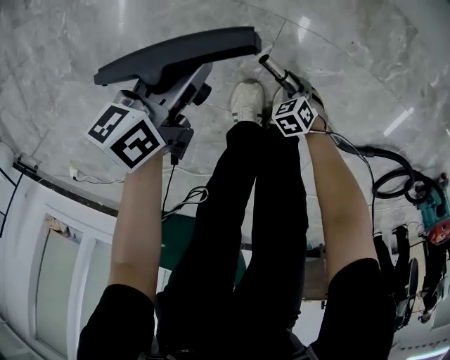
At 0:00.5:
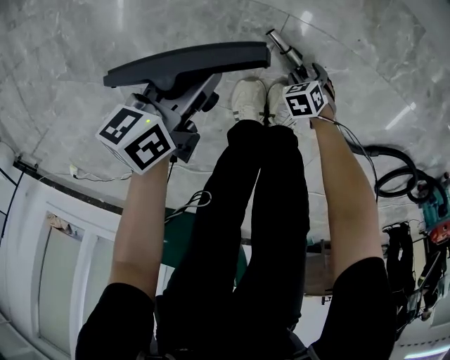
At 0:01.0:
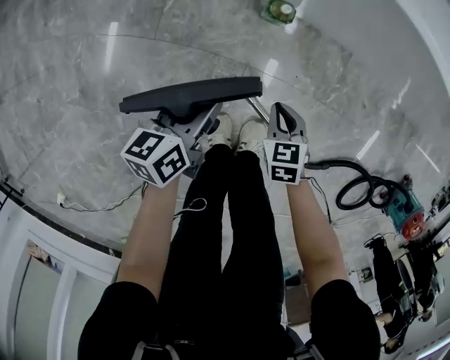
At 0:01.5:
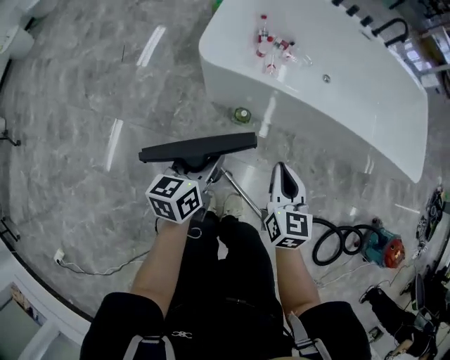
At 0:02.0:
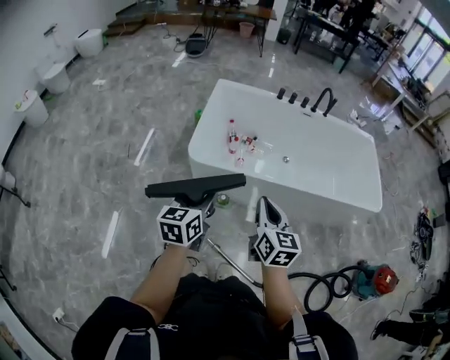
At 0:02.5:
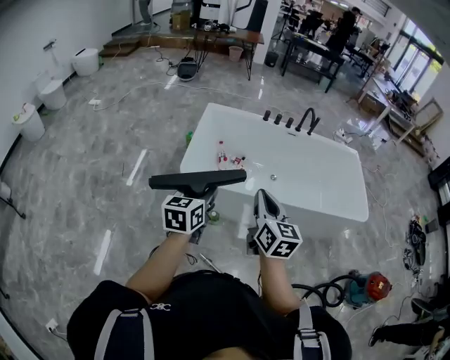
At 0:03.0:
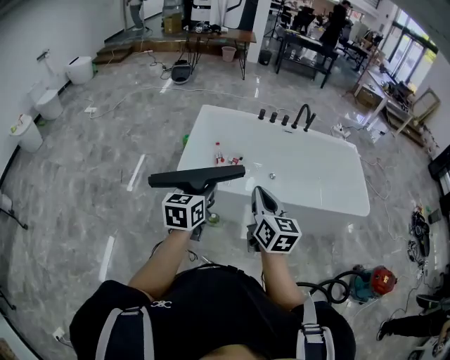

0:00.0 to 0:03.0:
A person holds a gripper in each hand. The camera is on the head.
0:00.0 to 0:01.5: The left gripper heads upward, covering approximately 50 cm, and rotates approximately 20 degrees. Meanwhile the right gripper moves upward, about 70 cm, tips its fingers upward by some 50 degrees, and opens, then closes again.
0:01.5 to 0:03.0: The two grippers go about 35 cm upward. The left gripper rotates some 20 degrees; the right gripper swivels about 20 degrees.

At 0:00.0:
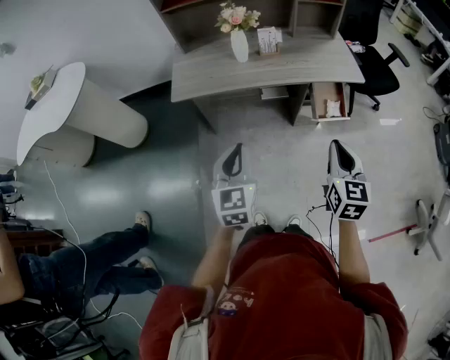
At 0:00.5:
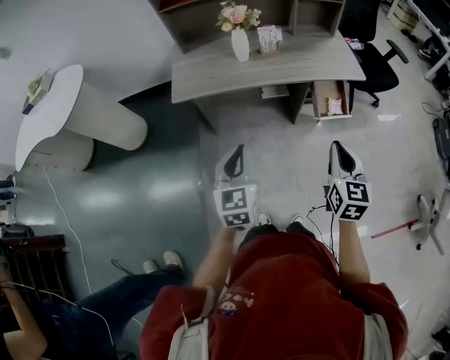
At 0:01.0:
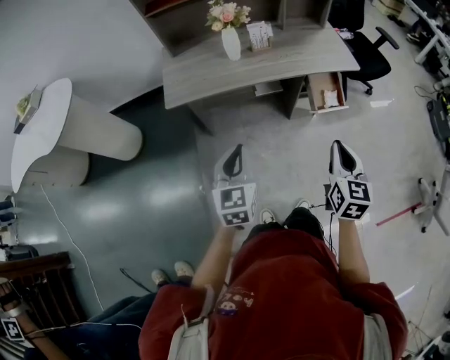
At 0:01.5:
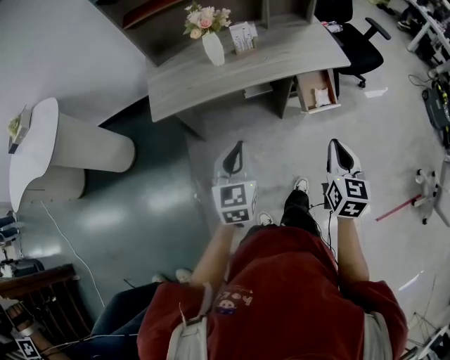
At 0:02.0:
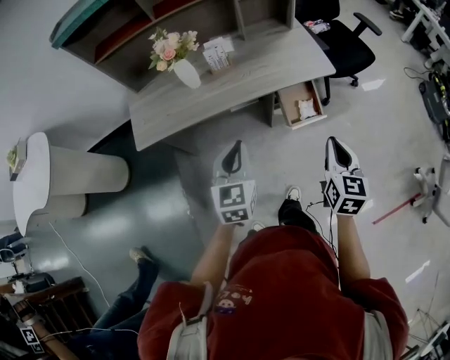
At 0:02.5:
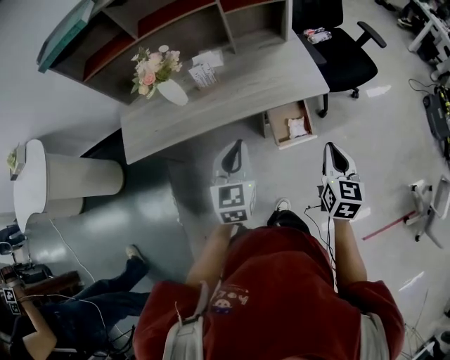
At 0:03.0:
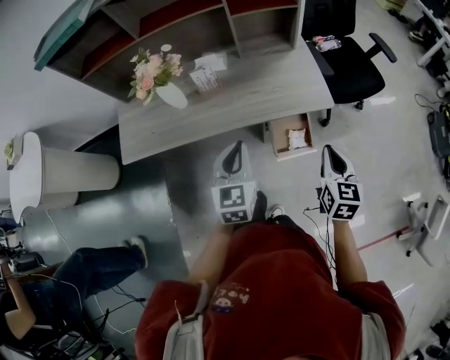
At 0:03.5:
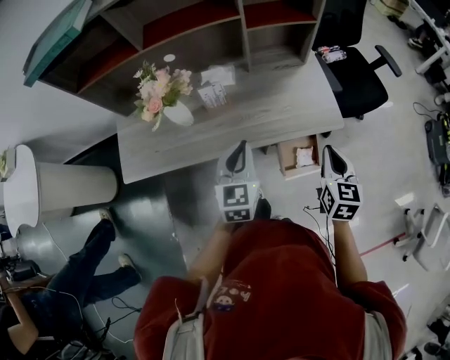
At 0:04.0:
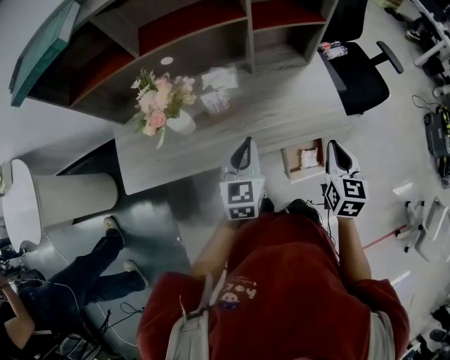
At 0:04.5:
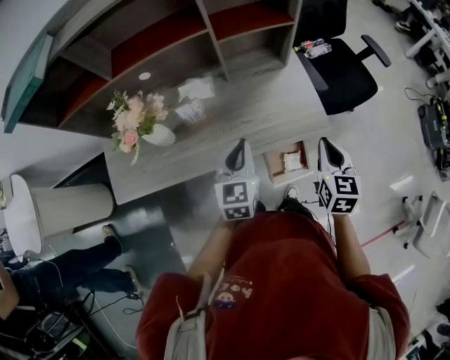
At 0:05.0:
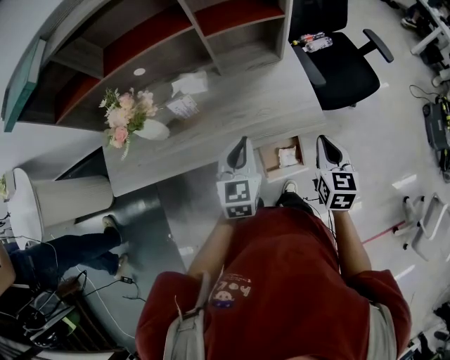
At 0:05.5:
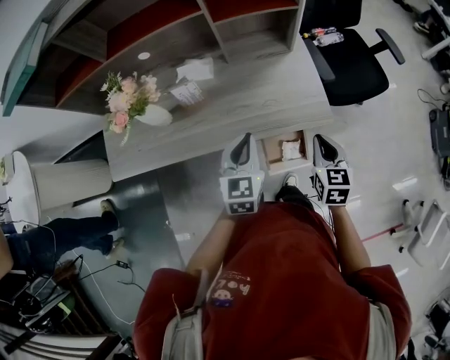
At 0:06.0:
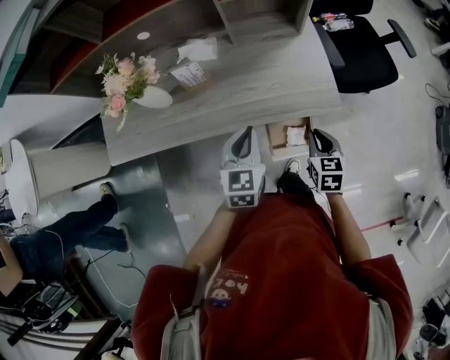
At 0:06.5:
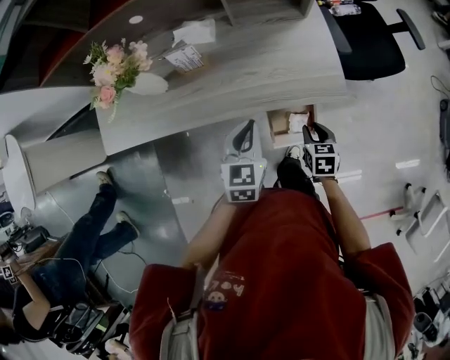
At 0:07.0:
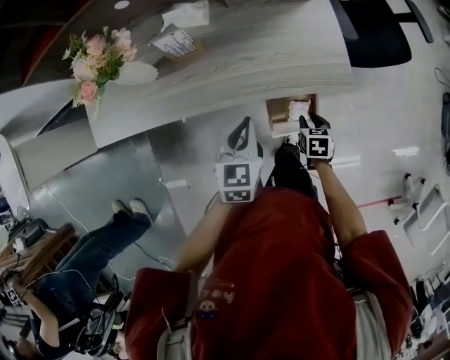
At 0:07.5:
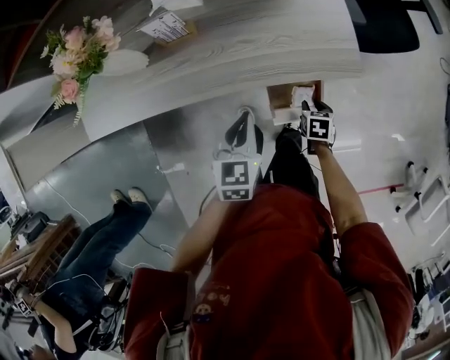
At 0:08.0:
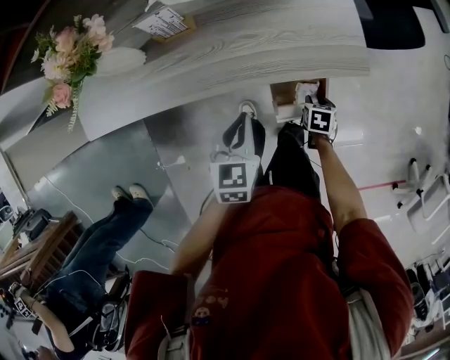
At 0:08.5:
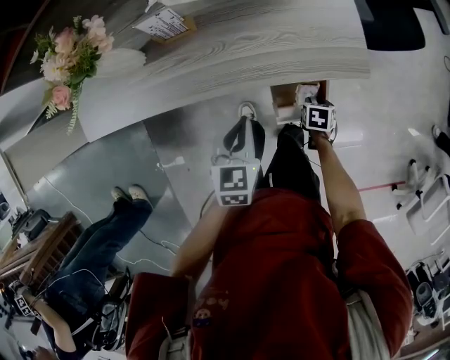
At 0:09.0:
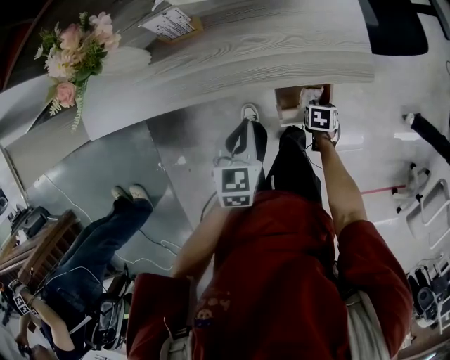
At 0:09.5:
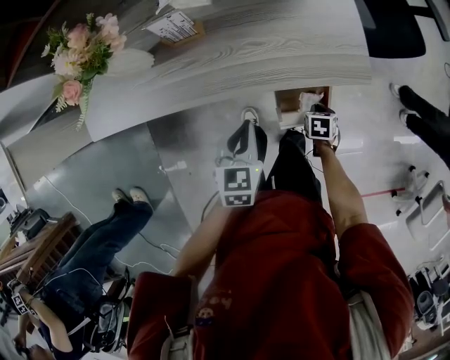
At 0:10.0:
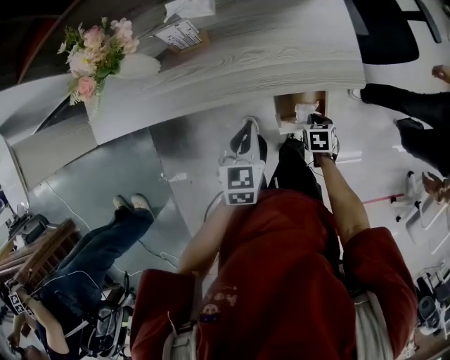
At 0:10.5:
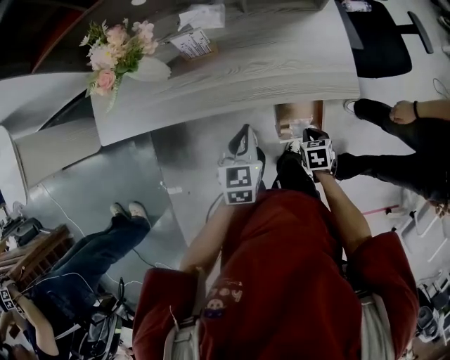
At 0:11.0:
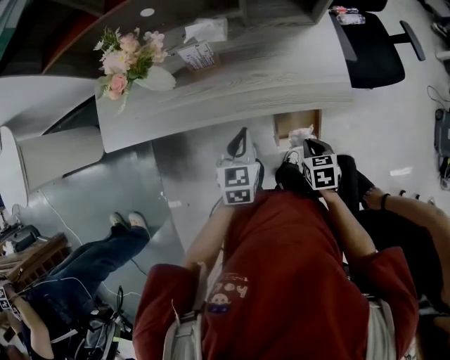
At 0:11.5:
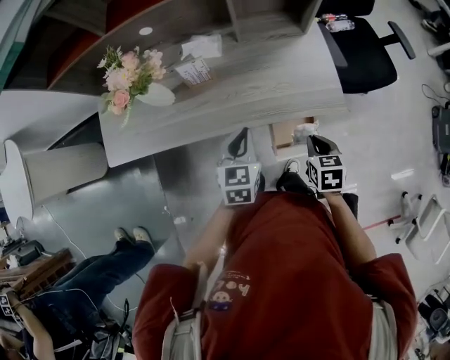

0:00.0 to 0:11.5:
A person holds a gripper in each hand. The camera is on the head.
0:00.0 to 0:02.0: Both grippers travel together forward and to the right, roughly 20 cm.
0:02.0 to 0:04.0: The two grippers go approximately 30 cm forward.
0:04.0 to 0:06.0: The left gripper goes some 10 cm to the right and downward, while the right gripper shifts about 15 cm downward and to the right.
0:06.0 to 0:07.5: The right gripper shifts approximately 25 cm downward, rotates approximately 30 degrees, and opens up, while the left gripper moves downward, some 10 cm.
0:07.5 to 0:09.5: The right gripper closes.
0:09.5 to 0:11.5: The left gripper moves upward, some 10 cm, while the right gripper goes approximately 25 cm upward, and swivels some 20 degrees.

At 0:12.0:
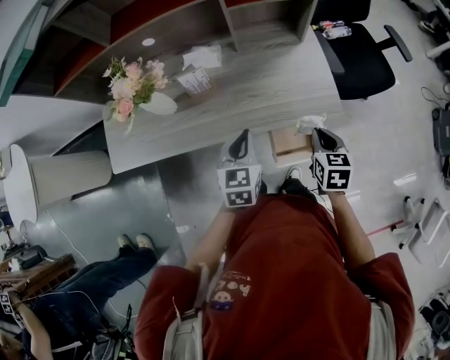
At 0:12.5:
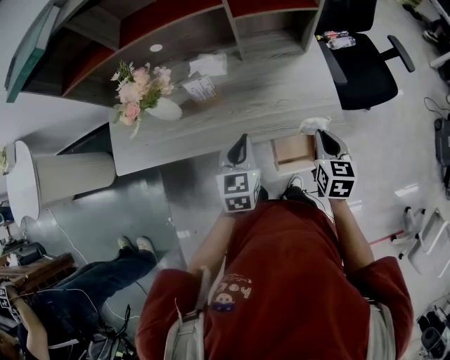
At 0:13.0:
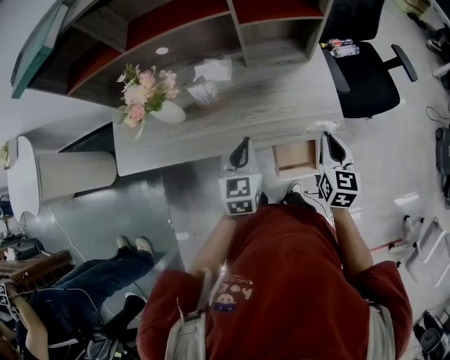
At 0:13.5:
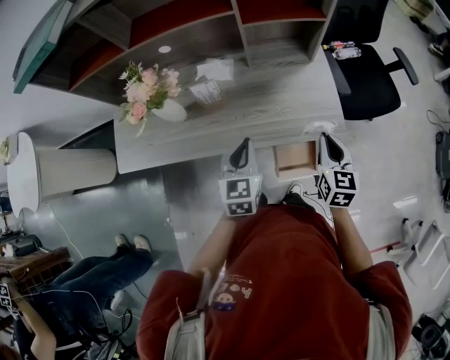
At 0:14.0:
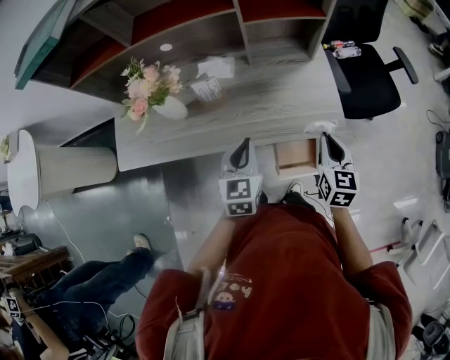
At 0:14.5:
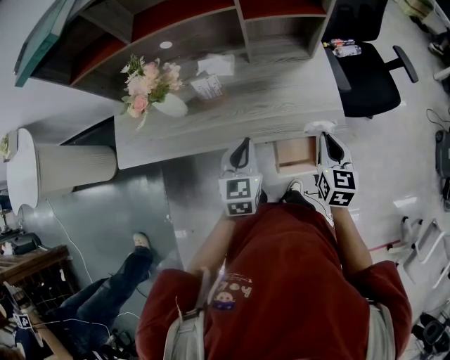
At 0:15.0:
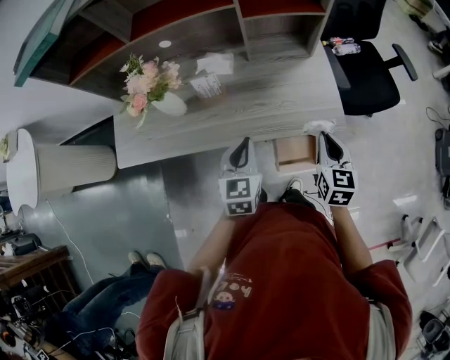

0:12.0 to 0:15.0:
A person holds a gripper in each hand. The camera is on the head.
0:12.0 to 0:13.5: The right gripper travels upward by roughly 5 cm.
0:13.5 to 0:15.0: There are only small adjustments of the grippers.

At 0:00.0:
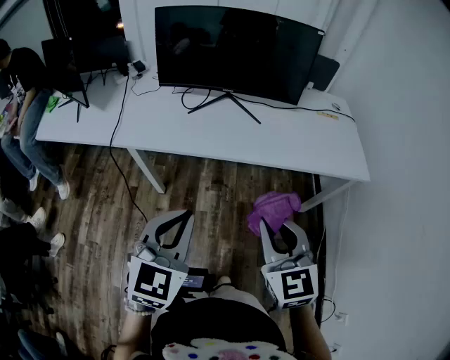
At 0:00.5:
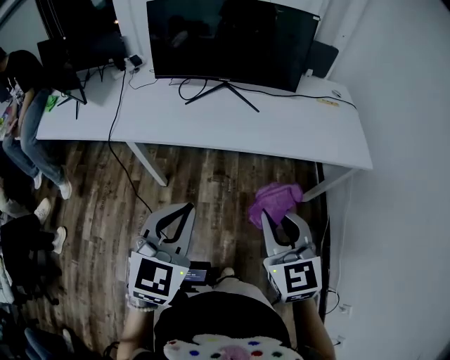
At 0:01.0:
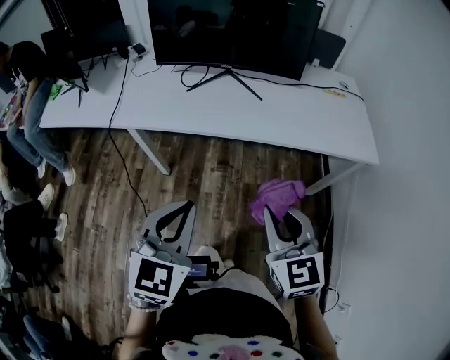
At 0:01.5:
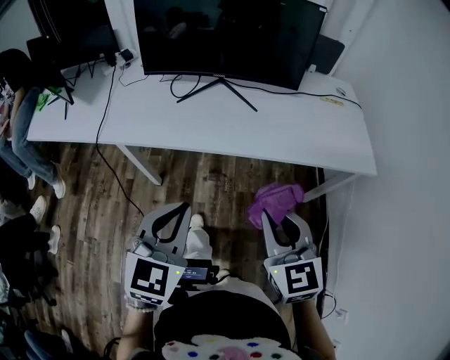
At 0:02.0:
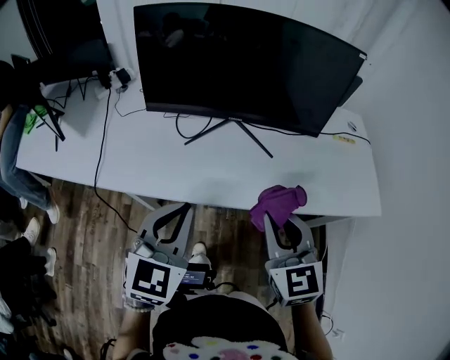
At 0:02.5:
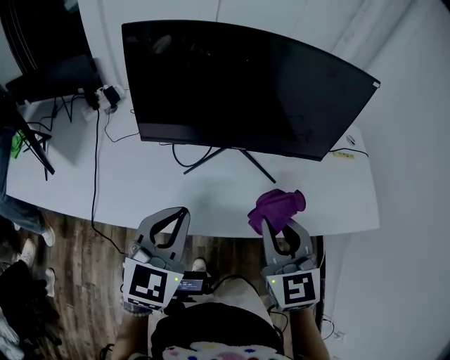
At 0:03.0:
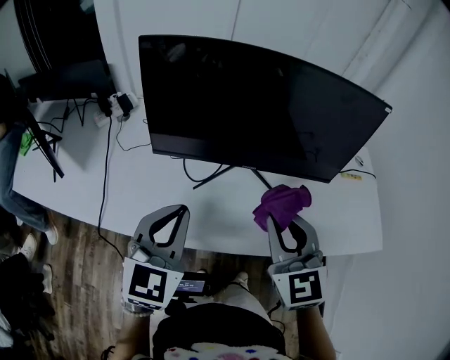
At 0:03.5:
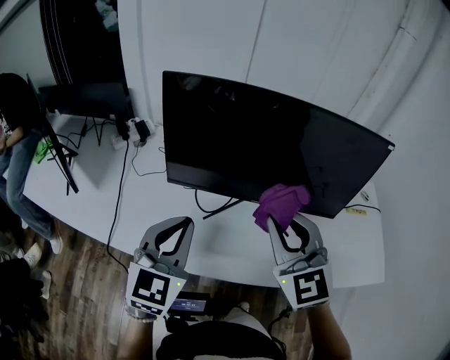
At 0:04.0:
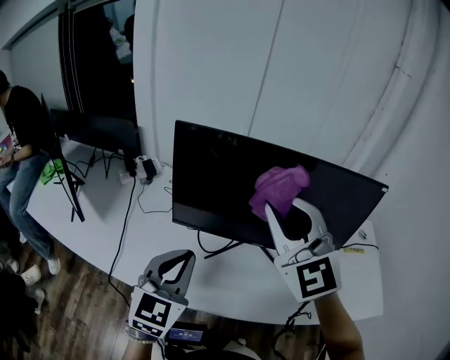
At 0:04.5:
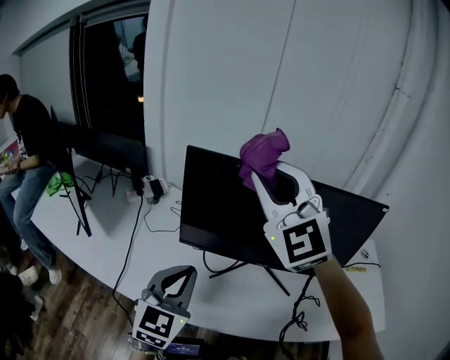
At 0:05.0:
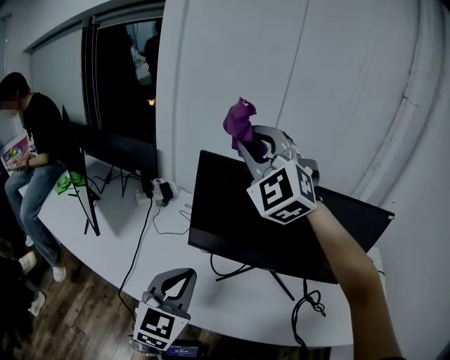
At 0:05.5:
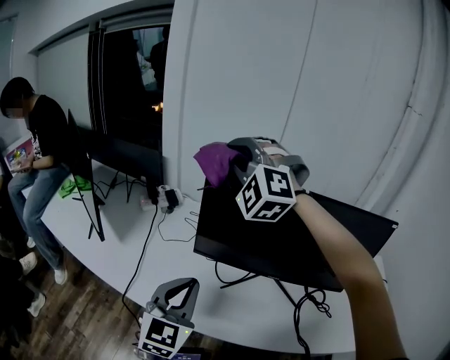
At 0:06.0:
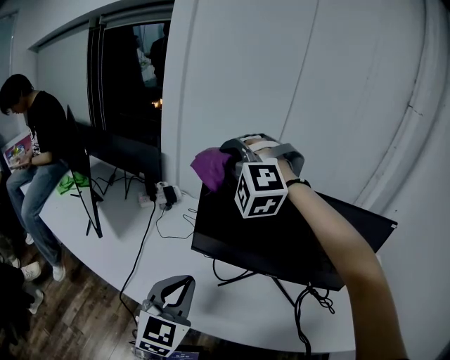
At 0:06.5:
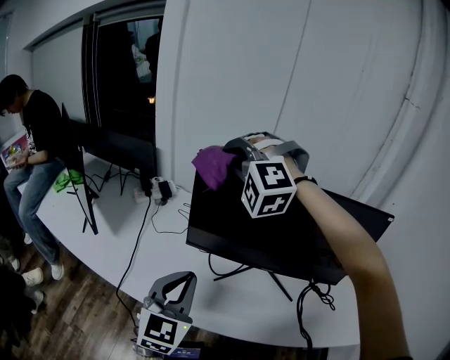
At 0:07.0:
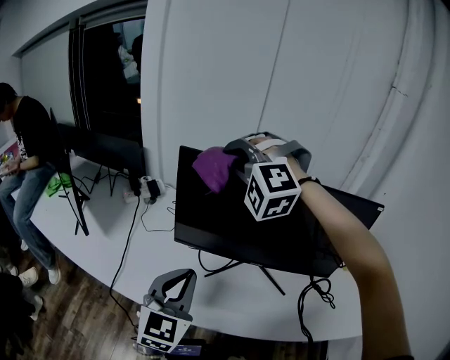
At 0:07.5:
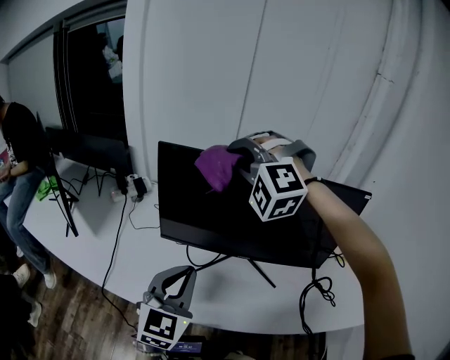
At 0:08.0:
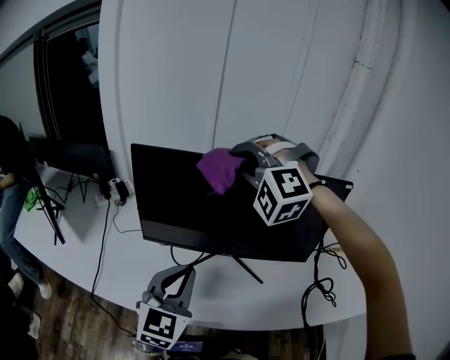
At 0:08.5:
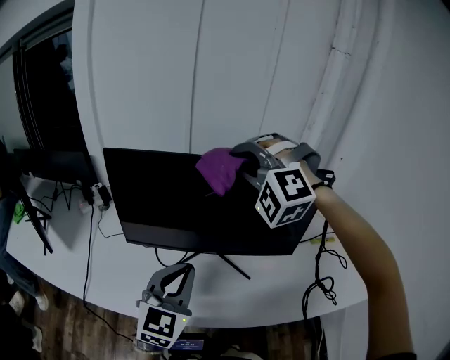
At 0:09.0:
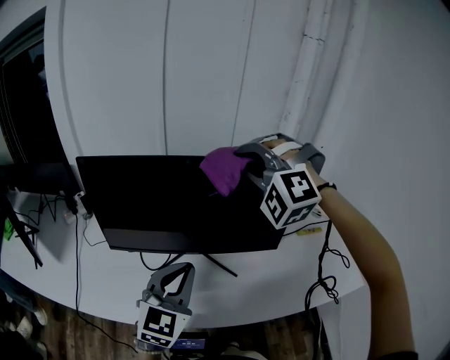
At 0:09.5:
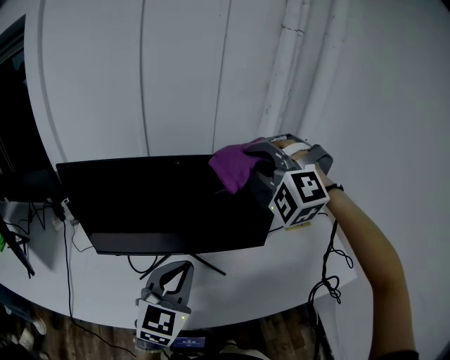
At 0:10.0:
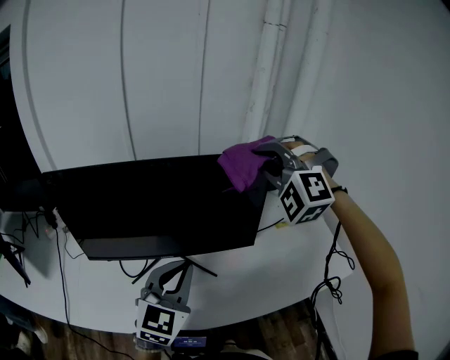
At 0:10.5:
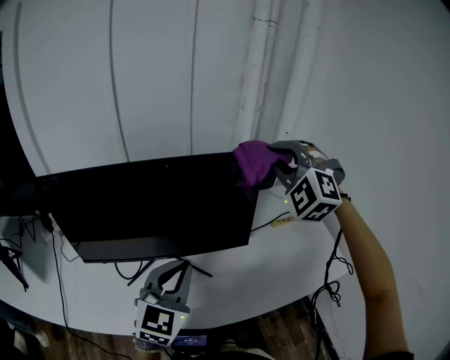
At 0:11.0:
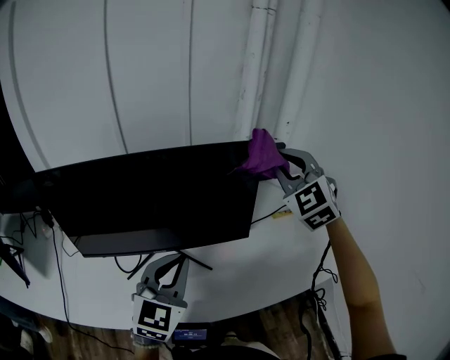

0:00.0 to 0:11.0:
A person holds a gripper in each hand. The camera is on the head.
0:00.0 to 0:02.0: The two grippers go roughly 25 cm forward.
0:02.0 to 0:03.5: The left gripper travels forward and to the left by some 20 cm. The right gripper shifts about 25 cm forward, upward and to the left, and changes its angle by some 20 degrees.
0:03.5 to 0:05.5: The right gripper shifts approximately 35 cm forward, to the left and upward, and rolls counterclockwise, seen from behind, by roughly 60 degrees. The left gripper moves to the left, about 5 cm.
0:05.5 to 0:07.5: Both grippers travel together to the right, approximately 10 cm.
0:07.5 to 0:09.0: The two grippers go roughly 20 cm to the right.
0:09.0 to 0:11.0: The right gripper travels to the right by roughly 25 cm, and twists approximately 50 degrees clockwise, seen from behind; the left gripper goes some 10 cm to the right.
